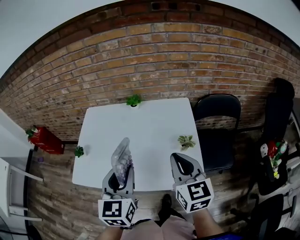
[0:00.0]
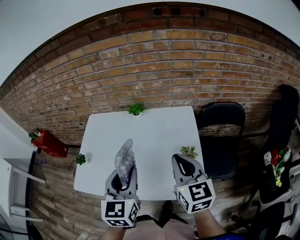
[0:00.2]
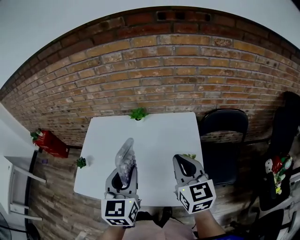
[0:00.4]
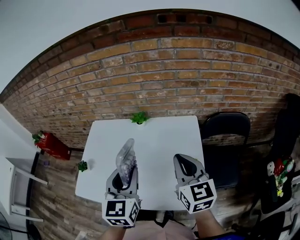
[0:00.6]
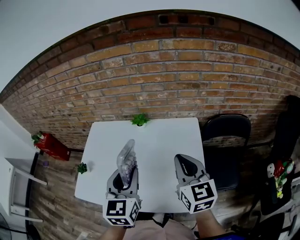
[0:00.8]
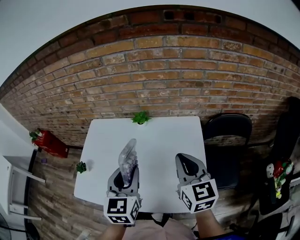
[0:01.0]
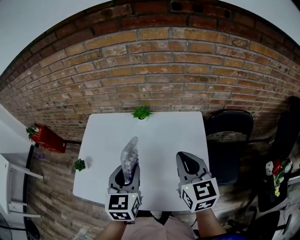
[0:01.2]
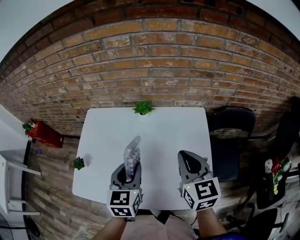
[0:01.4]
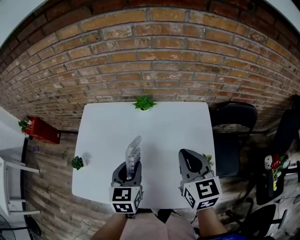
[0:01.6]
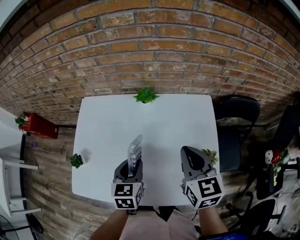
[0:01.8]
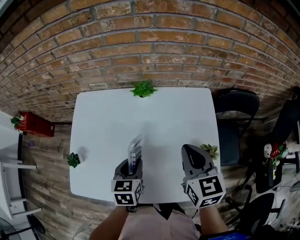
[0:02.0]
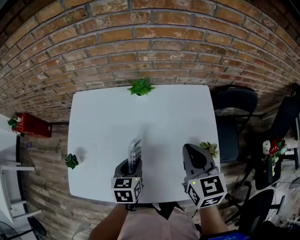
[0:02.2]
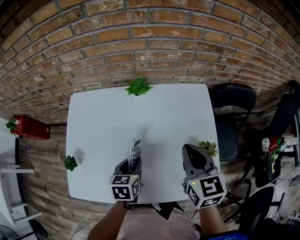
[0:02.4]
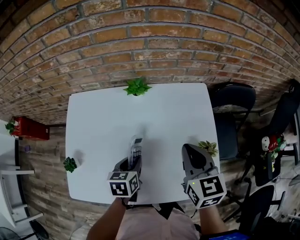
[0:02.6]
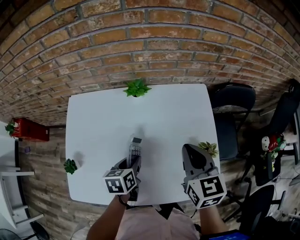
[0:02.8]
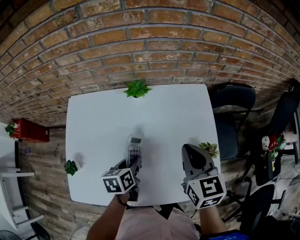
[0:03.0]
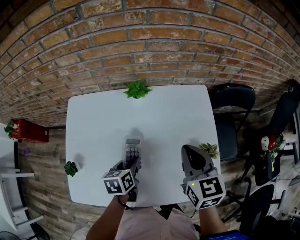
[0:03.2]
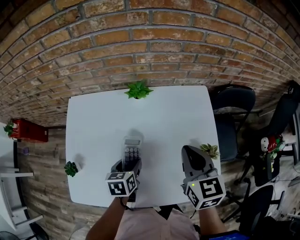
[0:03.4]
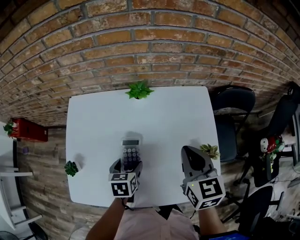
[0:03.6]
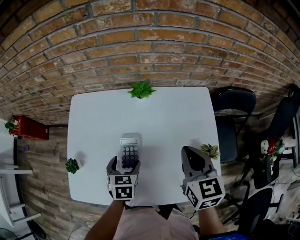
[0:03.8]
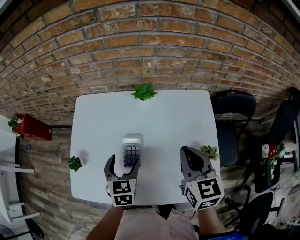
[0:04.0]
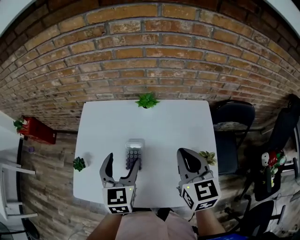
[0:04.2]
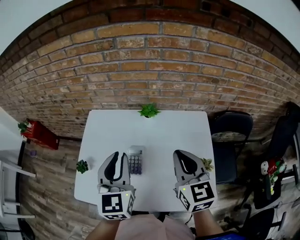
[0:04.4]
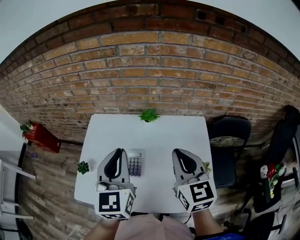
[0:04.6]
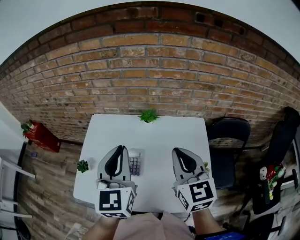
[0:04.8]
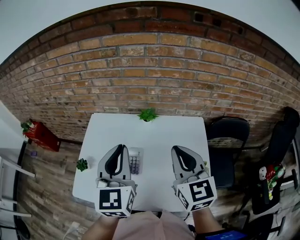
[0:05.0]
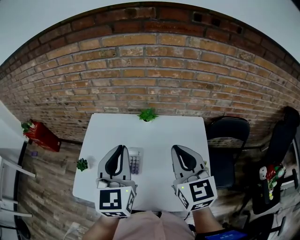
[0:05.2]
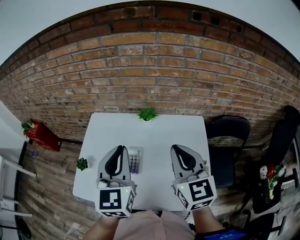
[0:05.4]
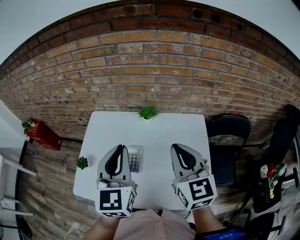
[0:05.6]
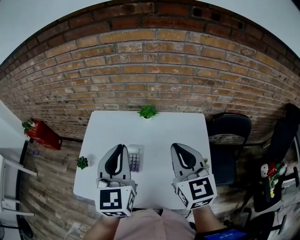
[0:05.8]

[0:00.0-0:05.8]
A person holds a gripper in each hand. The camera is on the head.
0:00.0 to 0:01.4: The left gripper is displaced forward and downward by about 15 cm, while the right gripper goes approximately 15 cm forward.
0:01.4 to 0:02.8: The right gripper is displaced downward by some 5 cm. The left gripper heads downward, covering about 20 cm, and changes its angle by some 40 degrees.
0:02.8 to 0:04.4: The left gripper shifts about 25 cm upward, tips its fingers upward by some 40 degrees, and opens, then closes once more, while the right gripper moves upward, approximately 10 cm.
0:04.4 to 0:05.8: The left gripper shifts some 5 cm upward.

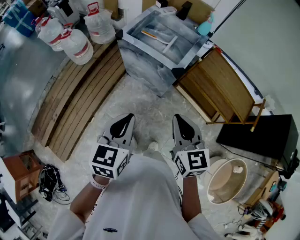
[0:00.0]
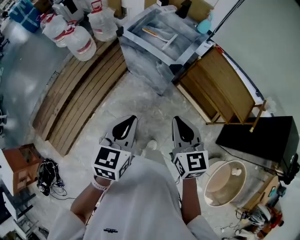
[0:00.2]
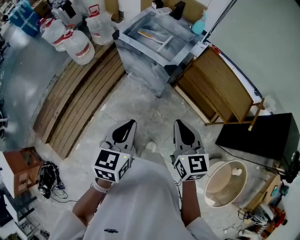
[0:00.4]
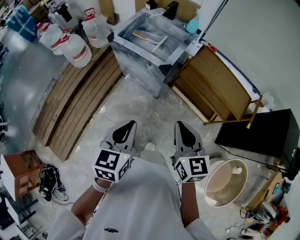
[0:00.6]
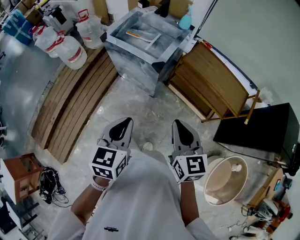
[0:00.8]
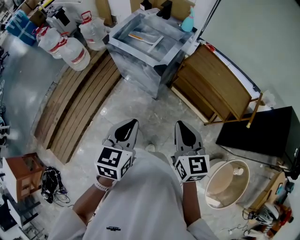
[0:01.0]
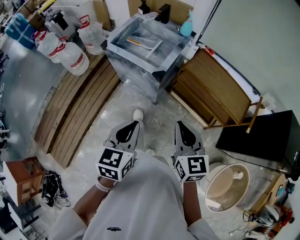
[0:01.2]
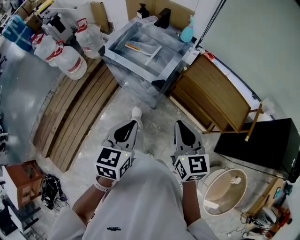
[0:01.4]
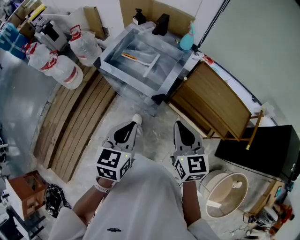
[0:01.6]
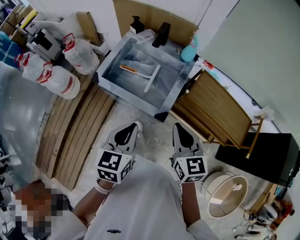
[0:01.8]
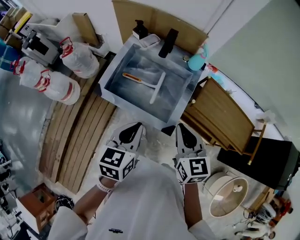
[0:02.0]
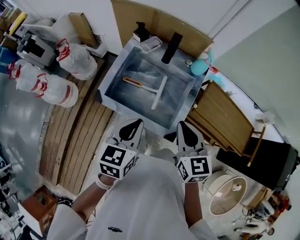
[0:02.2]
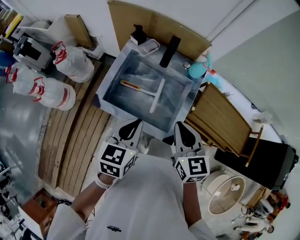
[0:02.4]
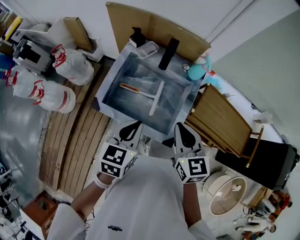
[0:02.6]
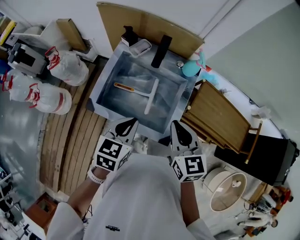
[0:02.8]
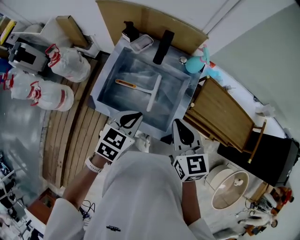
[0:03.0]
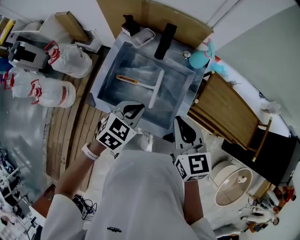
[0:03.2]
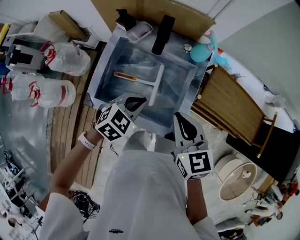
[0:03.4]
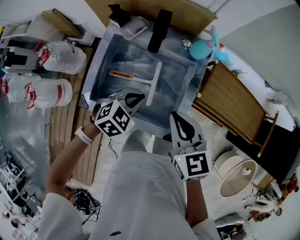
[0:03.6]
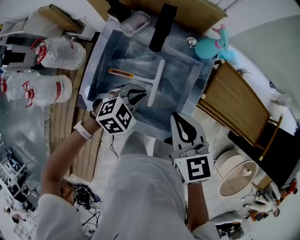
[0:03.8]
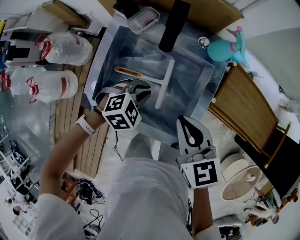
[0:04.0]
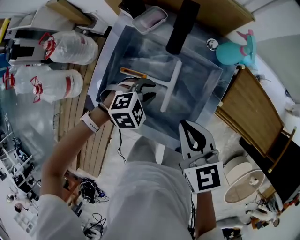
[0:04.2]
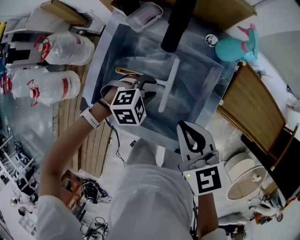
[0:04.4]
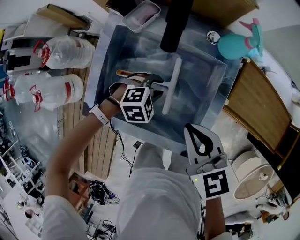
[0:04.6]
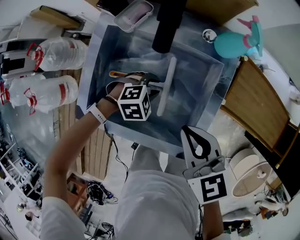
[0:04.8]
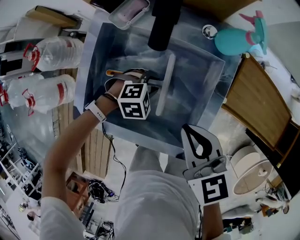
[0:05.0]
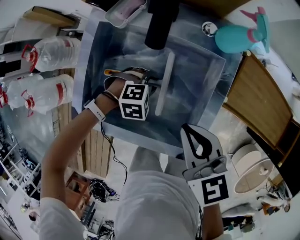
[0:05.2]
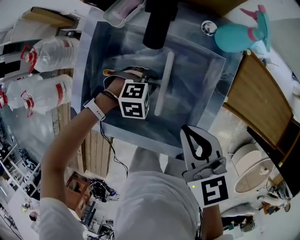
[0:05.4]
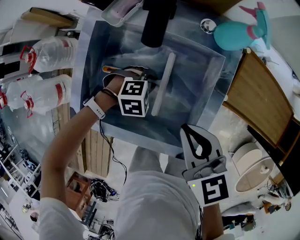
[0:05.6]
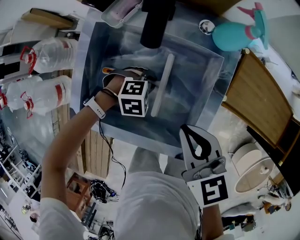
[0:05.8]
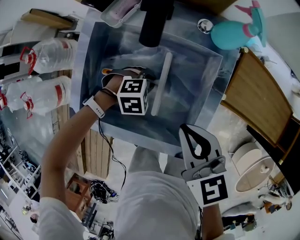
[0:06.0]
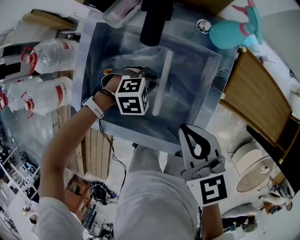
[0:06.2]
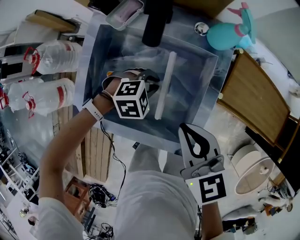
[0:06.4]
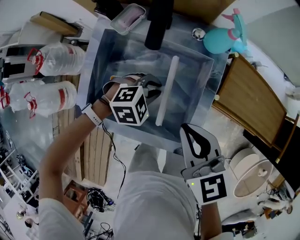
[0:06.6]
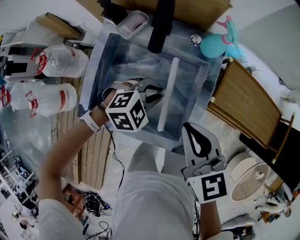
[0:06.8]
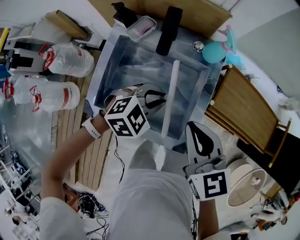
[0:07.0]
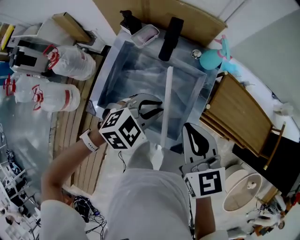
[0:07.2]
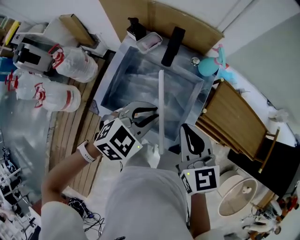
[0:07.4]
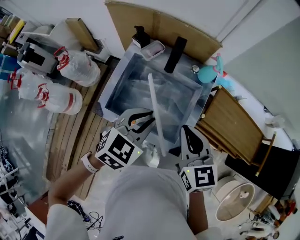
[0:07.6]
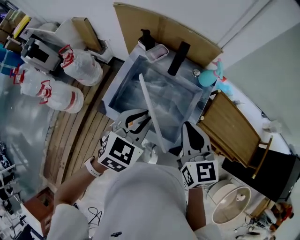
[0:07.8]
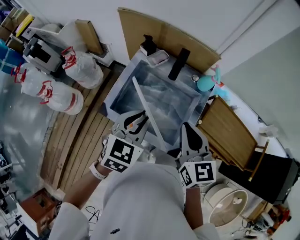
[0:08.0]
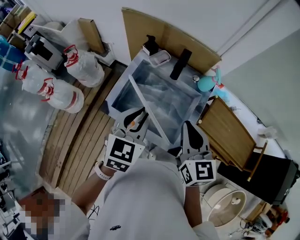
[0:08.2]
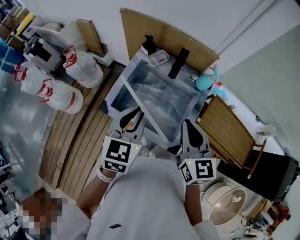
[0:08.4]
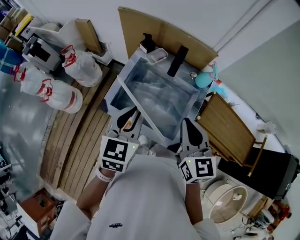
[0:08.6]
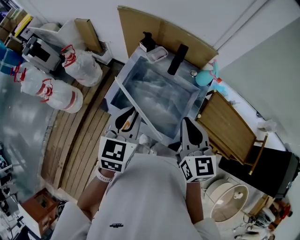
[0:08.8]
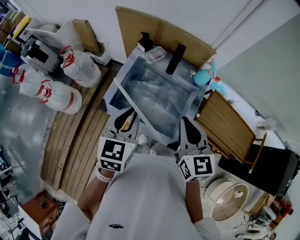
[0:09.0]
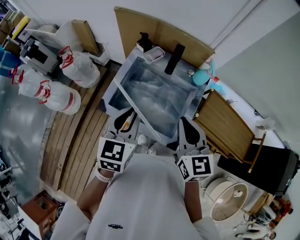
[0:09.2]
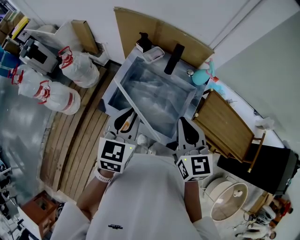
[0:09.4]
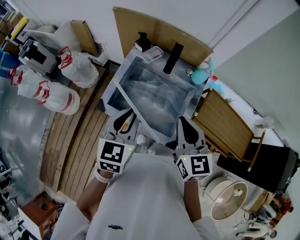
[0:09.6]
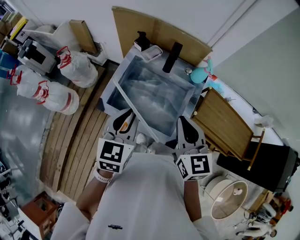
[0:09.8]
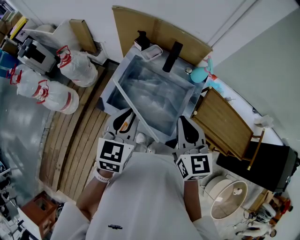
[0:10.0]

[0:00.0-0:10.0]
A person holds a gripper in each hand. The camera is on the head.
0:00.0 to 0:01.4: The right gripper shifts approximately 15 cm to the right; the left gripper heads to the right and forward, covering some 15 cm.
0:01.4 to 0:02.8: The right gripper heads forward and to the left, covering about 35 cm. The left gripper goes about 35 cm forward, and turns by approximately 20 degrees.
0:02.8 to 0:04.2: The left gripper goes roughly 25 cm downward and forward, rotates around the line of its fingers by approximately 50 degrees, clockwise from behind, and opens, while the right gripper heads downward and forward, covering roughly 10 cm.
0:04.2 to 0:05.8: The left gripper moves downward, about 10 cm, and rotates roughly 20 degrees. The right gripper moves roughly 5 cm.
0:05.8 to 0:07.2: The right gripper is displaced upward by about 10 cm. The left gripper is displaced upward by about 25 cm, and turns by roughly 40 degrees.
0:07.2 to 0:08.6: The left gripper moves upward and to the left, some 20 cm, and turns by about 60 degrees, while the right gripper moves upward, about 10 cm.
0:08.6 to 0:10.0: The grippers make only small movements.

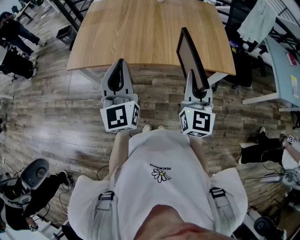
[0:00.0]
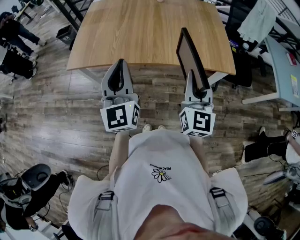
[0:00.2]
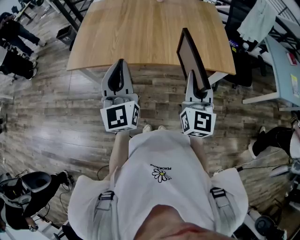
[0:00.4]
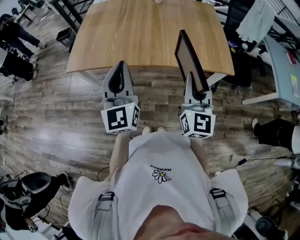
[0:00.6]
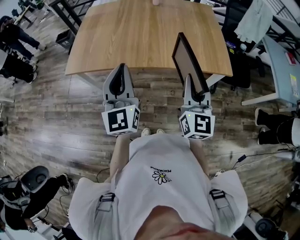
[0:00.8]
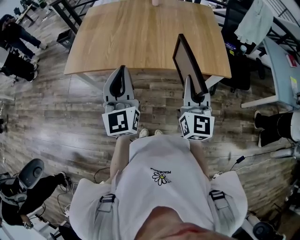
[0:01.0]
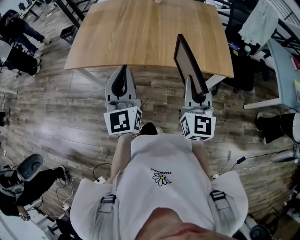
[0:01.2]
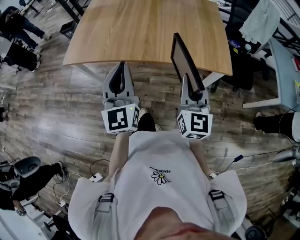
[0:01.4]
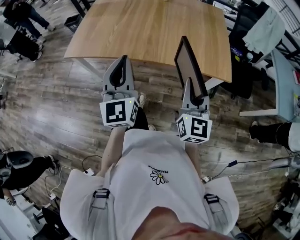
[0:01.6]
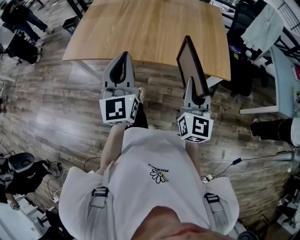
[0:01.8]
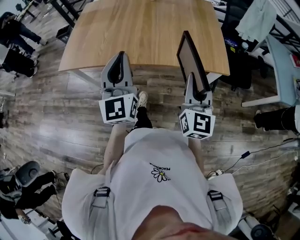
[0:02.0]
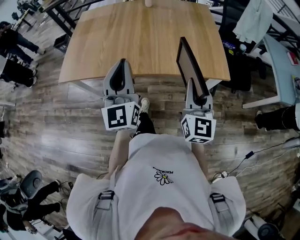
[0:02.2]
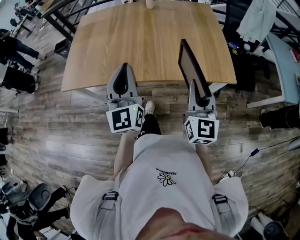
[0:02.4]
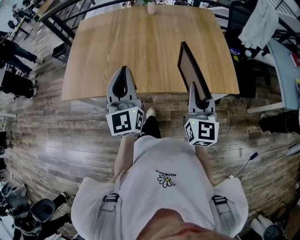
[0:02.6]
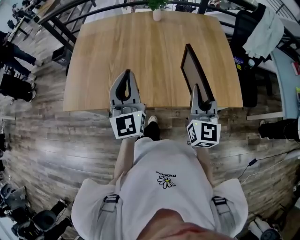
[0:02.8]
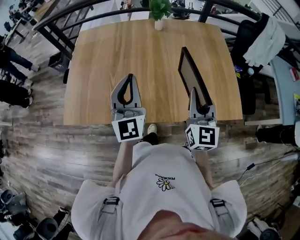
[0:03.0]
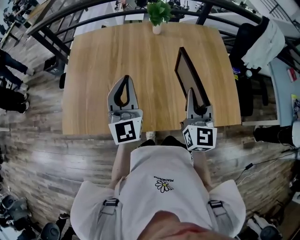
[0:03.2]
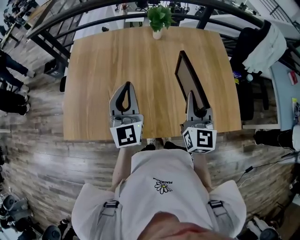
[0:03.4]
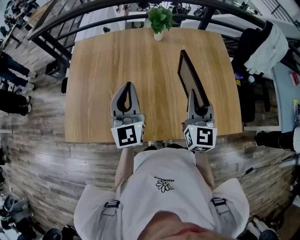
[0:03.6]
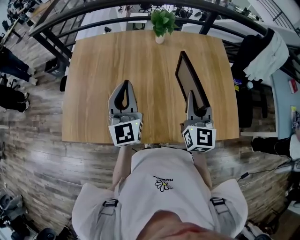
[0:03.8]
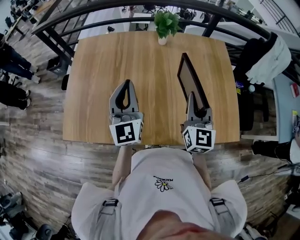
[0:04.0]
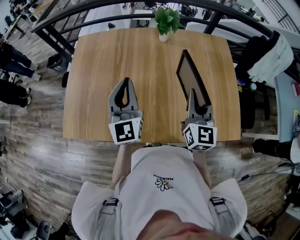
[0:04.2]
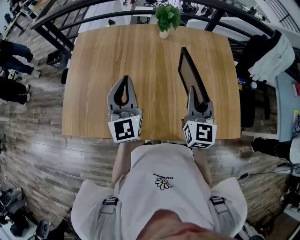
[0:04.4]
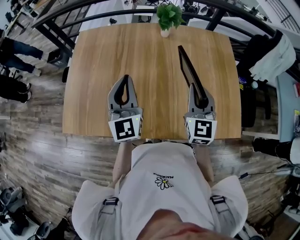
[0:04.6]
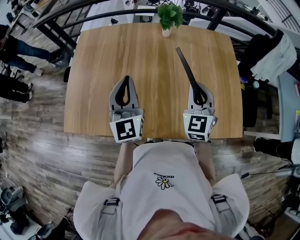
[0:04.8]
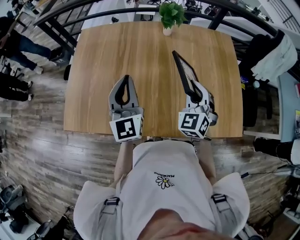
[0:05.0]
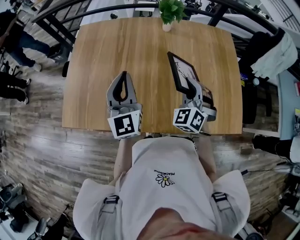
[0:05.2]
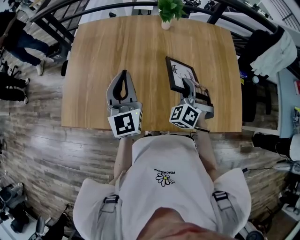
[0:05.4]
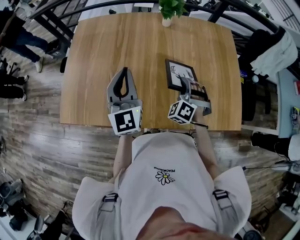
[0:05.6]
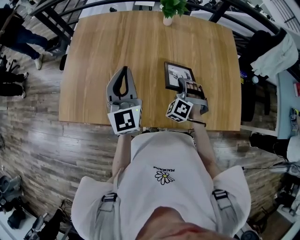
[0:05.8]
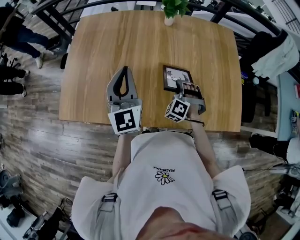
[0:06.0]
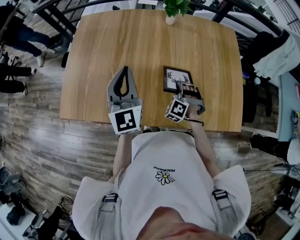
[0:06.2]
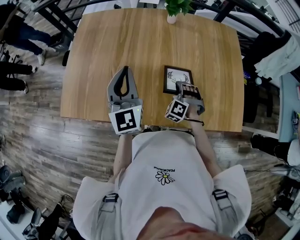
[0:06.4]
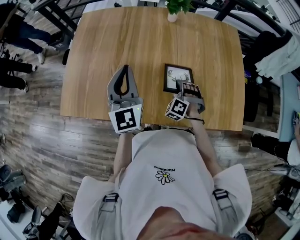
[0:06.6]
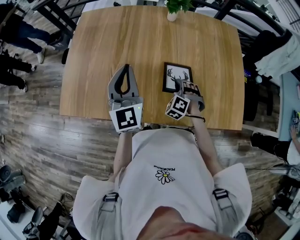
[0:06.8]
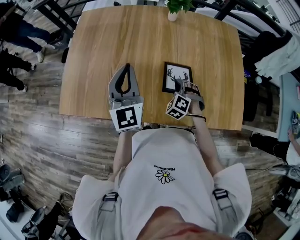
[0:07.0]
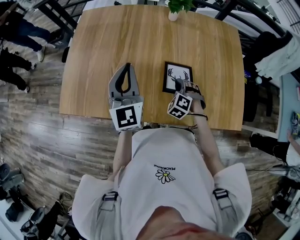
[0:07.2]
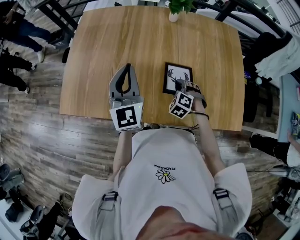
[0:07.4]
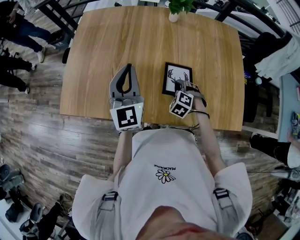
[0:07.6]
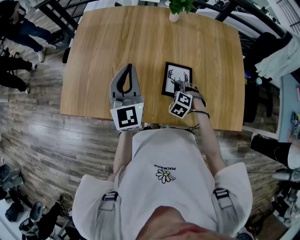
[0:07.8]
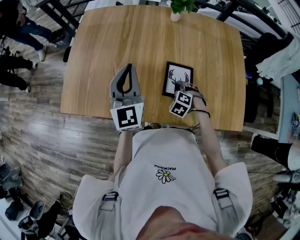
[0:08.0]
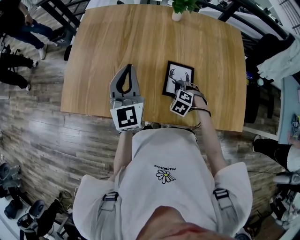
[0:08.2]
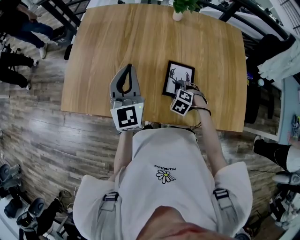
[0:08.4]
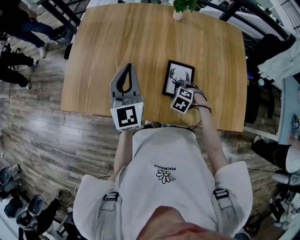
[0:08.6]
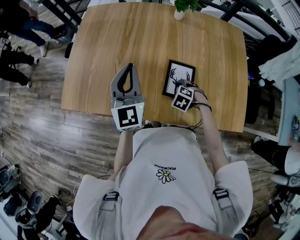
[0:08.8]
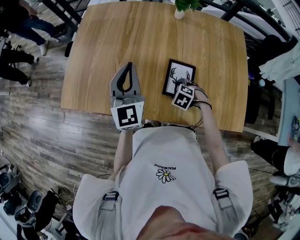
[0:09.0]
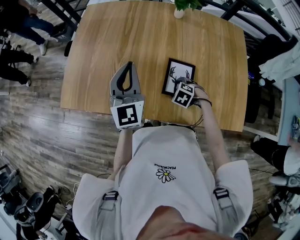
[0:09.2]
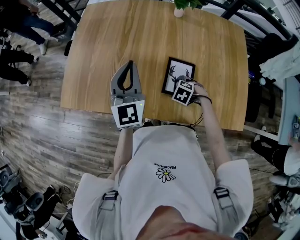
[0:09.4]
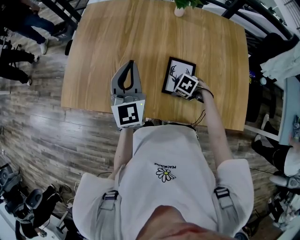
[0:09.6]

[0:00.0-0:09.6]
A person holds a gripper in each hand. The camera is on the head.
0:00.0 to 0:01.6: The grippers both shift to the right by roughly 10 cm.
0:01.6 to 0:03.2: The two grippers go about 35 cm forward.
0:03.2 to 0:04.8: The left gripper changes place by some 5 cm; the right gripper is displaced forward by about 10 cm, and swivels roughly 30 degrees.
0:04.8 to 0:06.4: The right gripper heads downward, covering approximately 25 cm, and twists some 50 degrees counterclockwise, seen from behind.
0:06.4 to 0:08.0: The right gripper is displaced downward by approximately 5 cm, rotates roughly 30 degrees, and opens.
0:08.0 to 0:09.6: The right gripper turns by about 30 degrees.
